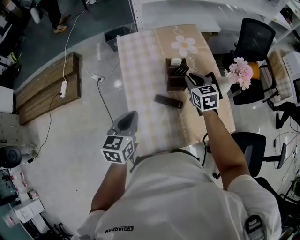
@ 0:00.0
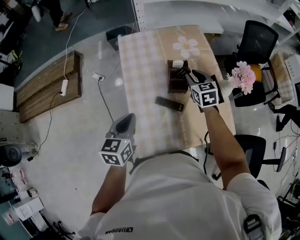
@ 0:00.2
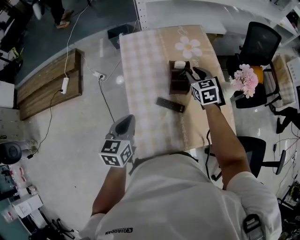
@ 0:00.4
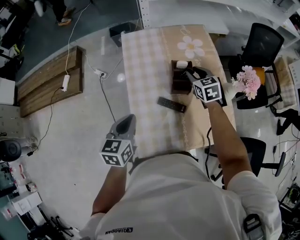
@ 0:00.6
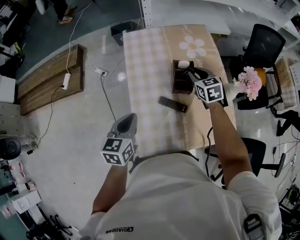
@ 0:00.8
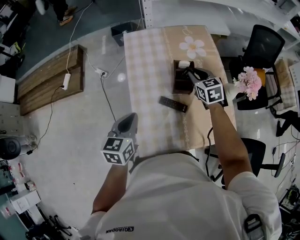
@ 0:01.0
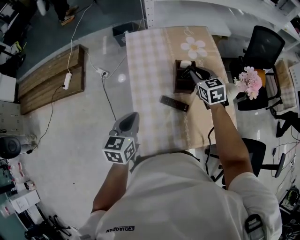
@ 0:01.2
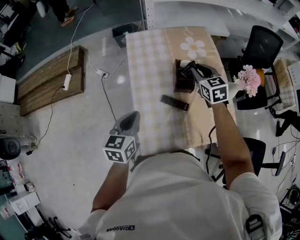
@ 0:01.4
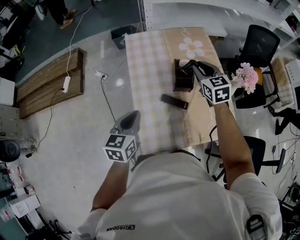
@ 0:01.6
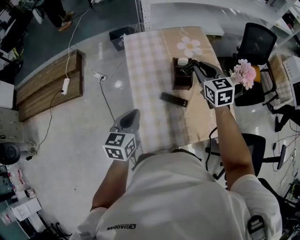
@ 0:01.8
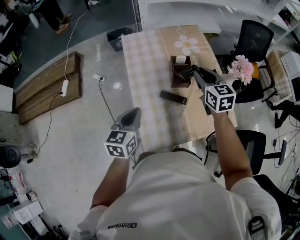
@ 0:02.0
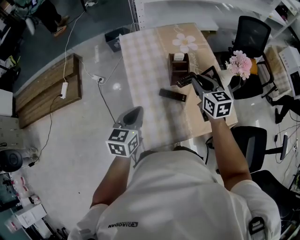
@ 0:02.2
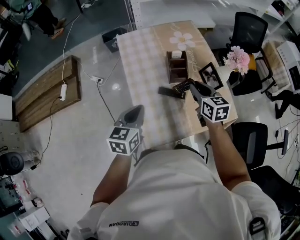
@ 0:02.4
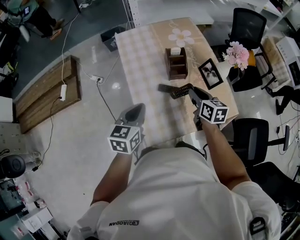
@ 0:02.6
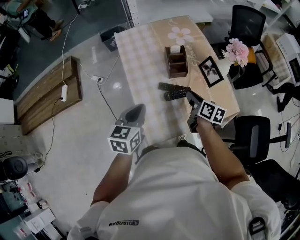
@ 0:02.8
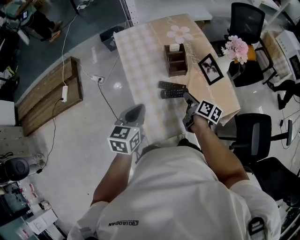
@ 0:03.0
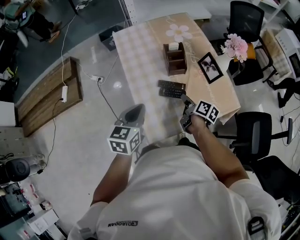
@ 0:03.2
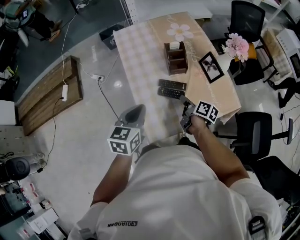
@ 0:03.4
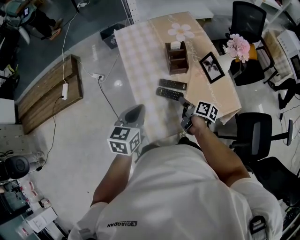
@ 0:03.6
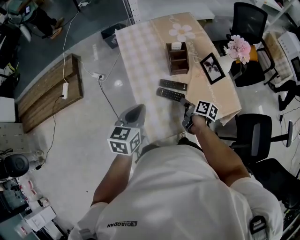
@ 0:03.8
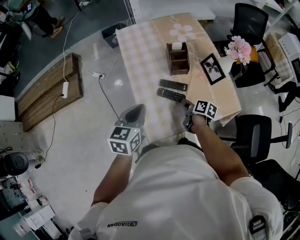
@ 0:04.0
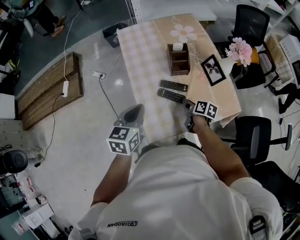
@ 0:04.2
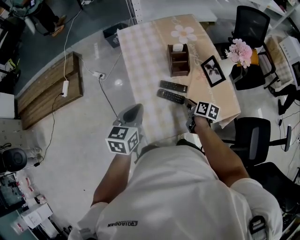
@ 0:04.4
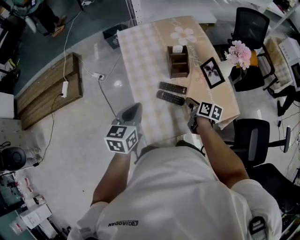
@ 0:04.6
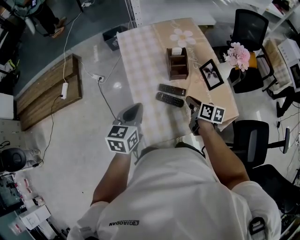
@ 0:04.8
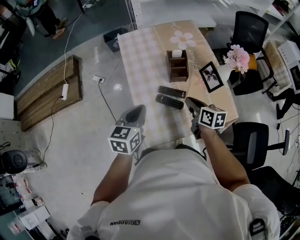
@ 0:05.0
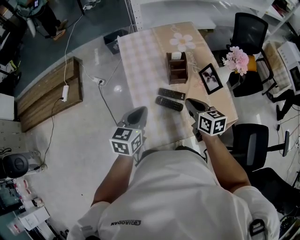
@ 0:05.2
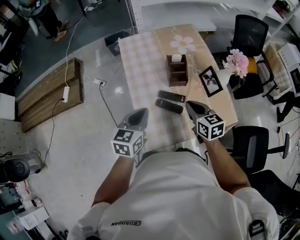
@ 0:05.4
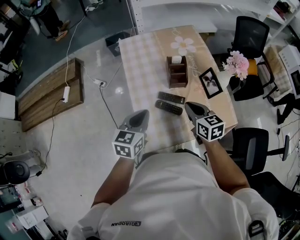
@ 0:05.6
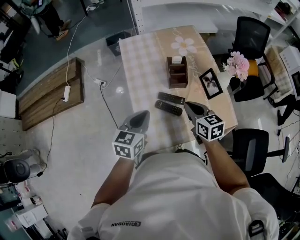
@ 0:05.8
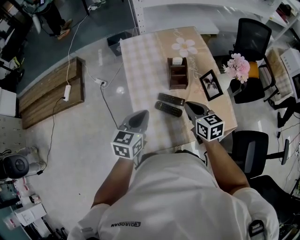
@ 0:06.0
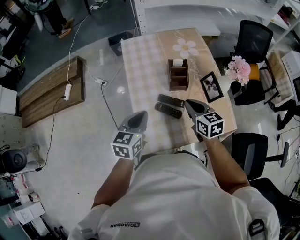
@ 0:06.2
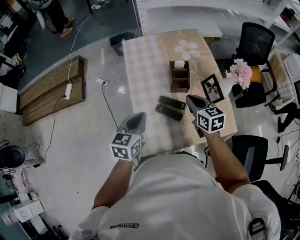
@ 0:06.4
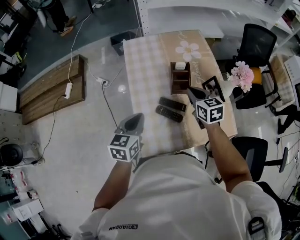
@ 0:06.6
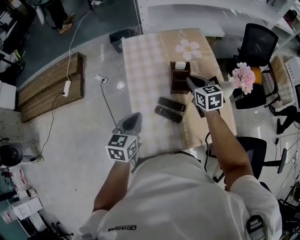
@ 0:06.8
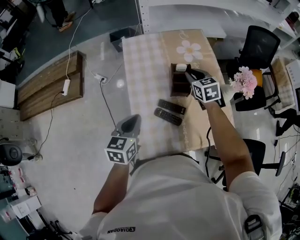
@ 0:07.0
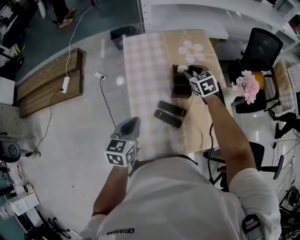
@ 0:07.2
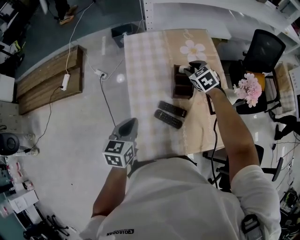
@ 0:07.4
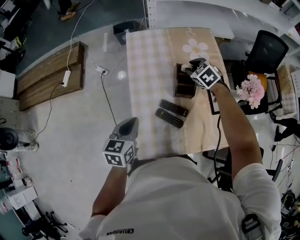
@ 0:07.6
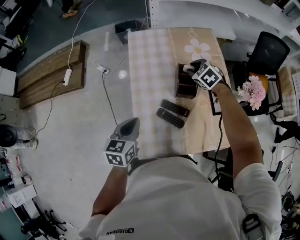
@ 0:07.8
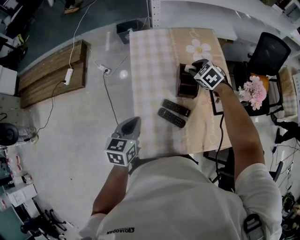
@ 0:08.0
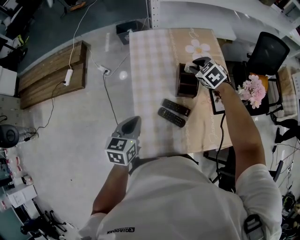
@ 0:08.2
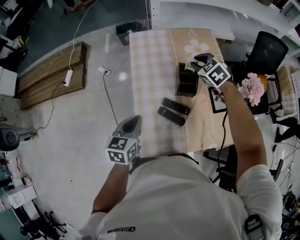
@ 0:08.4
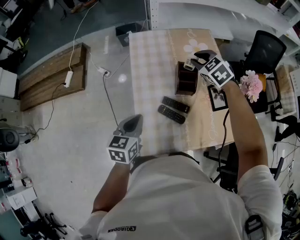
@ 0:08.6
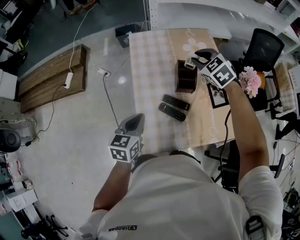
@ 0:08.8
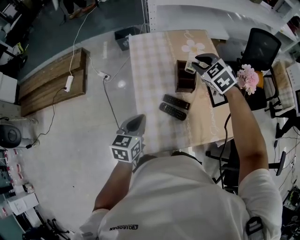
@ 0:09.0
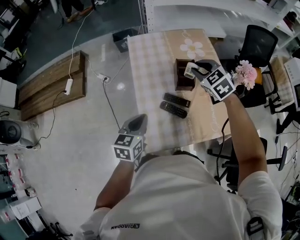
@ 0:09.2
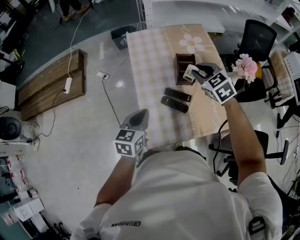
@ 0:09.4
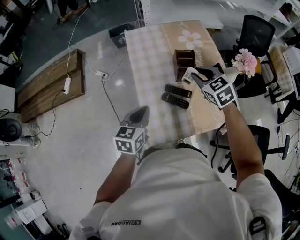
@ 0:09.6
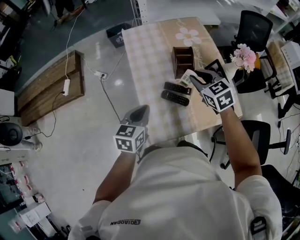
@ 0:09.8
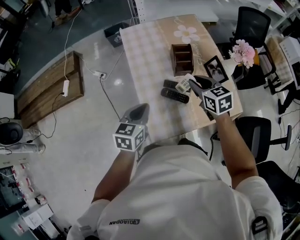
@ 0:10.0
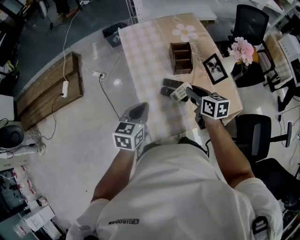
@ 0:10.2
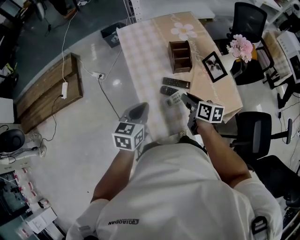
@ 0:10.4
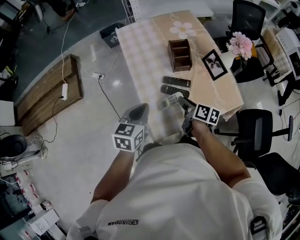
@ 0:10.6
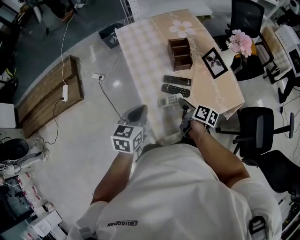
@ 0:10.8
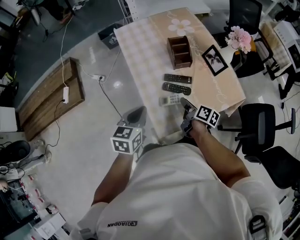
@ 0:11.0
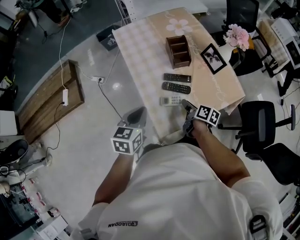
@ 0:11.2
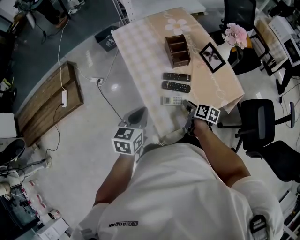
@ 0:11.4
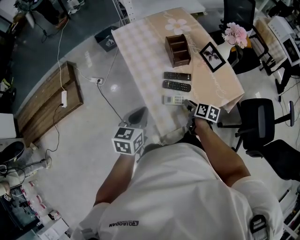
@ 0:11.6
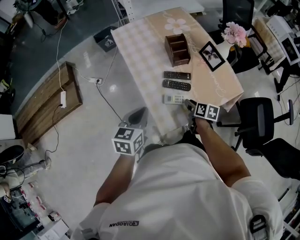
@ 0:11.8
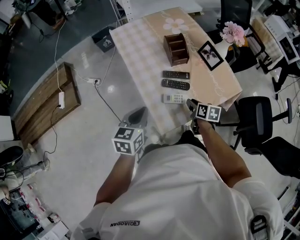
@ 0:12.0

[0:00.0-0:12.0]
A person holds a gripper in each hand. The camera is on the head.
0:00.0 to 0:01.6: The right gripper travels upward by some 5 cm.
0:01.6 to 0:03.0: The right gripper heads backward and downward, covering approximately 25 cm, and rotates around the line of its fingers by roughly 70 degrees, clockwise from behind.
0:03.0 to 0:04.4: The right gripper goes roughly 5 cm downward.
0:04.4 to 0:06.0: The right gripper heads upward, covering some 15 cm, and rotates around the line of its fingers by about 40 degrees, counterclockwise from behind.
0:06.0 to 0:07.6: The right gripper travels forward by about 25 cm, rotates some 50 degrees, and opens. The left gripper ends up about 5 cm from where it was.
0:07.6 to 0:09.0: The right gripper moves upward and backward, about 15 cm.
0:09.0 to 0:10.4: The right gripper goes about 25 cm backward and downward, and rolls clockwise, seen from behind, by approximately 80 degrees.
0:10.4 to 0:12.0: The right gripper heads downward and backward, covering approximately 10 cm; the left gripper shifts by approximately 5 cm.

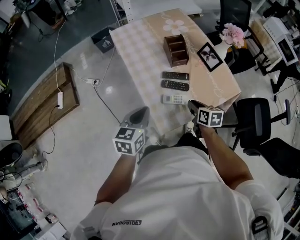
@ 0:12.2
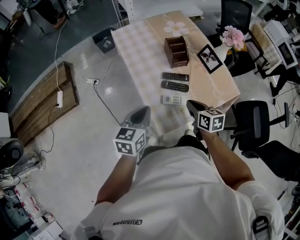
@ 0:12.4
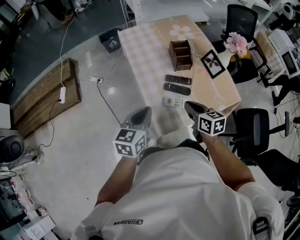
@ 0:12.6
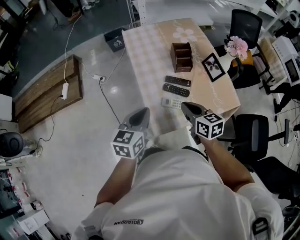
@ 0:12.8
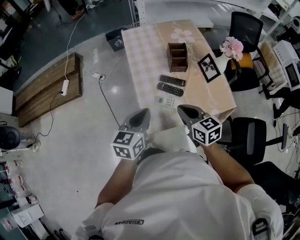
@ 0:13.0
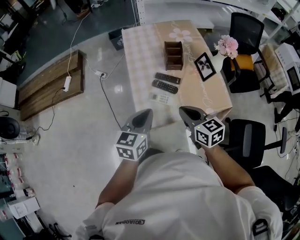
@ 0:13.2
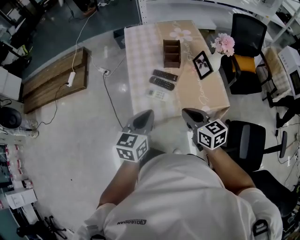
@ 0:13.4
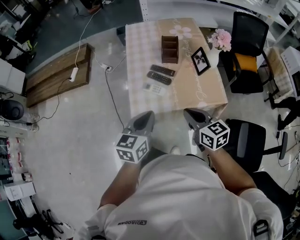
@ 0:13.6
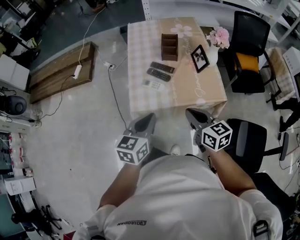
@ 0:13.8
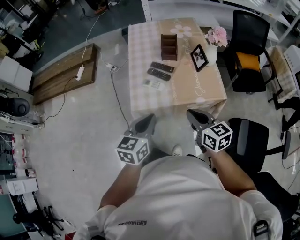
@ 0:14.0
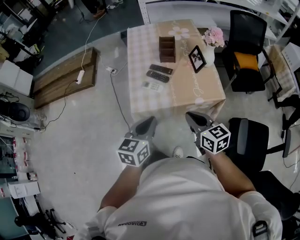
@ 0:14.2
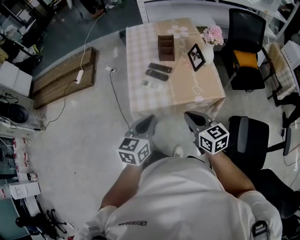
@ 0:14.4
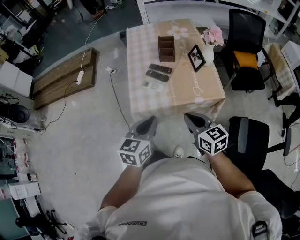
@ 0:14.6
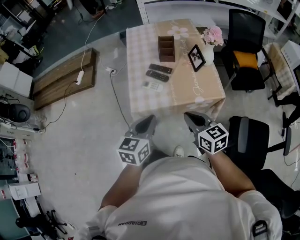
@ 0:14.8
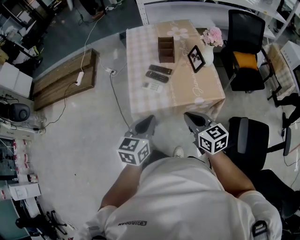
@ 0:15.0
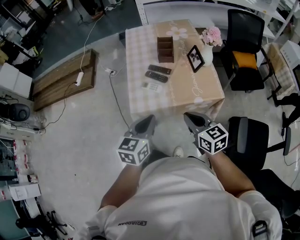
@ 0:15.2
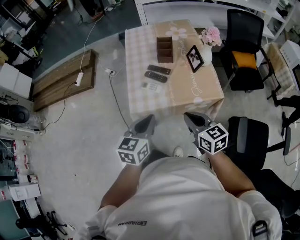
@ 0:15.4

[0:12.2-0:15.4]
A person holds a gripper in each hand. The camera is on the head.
0:12.2 to 0:13.8: The left gripper shifts some 25 cm backward and to the right; the right gripper moves backward, upward and to the right, approximately 25 cm, and swivels some 40 degrees.
0:13.8 to 0:15.4: The grippers move only a little.

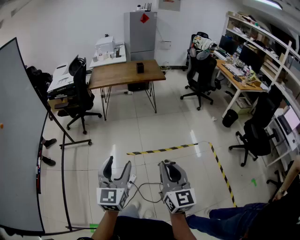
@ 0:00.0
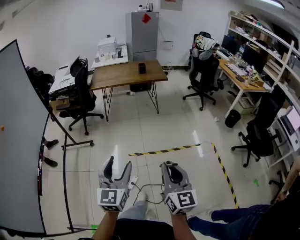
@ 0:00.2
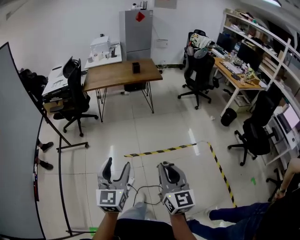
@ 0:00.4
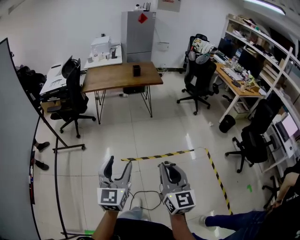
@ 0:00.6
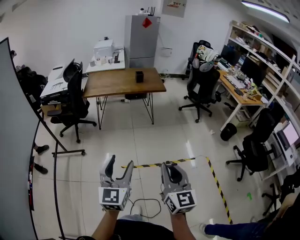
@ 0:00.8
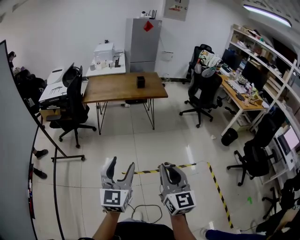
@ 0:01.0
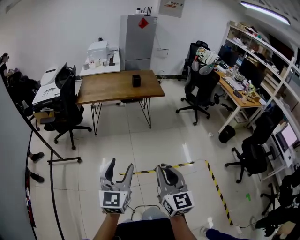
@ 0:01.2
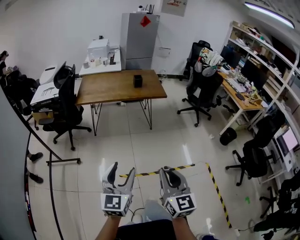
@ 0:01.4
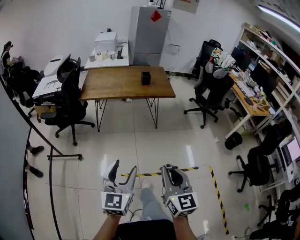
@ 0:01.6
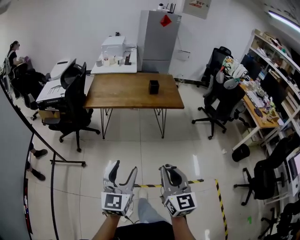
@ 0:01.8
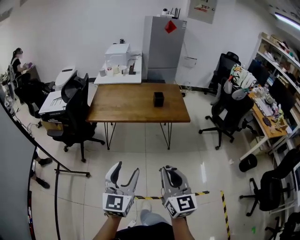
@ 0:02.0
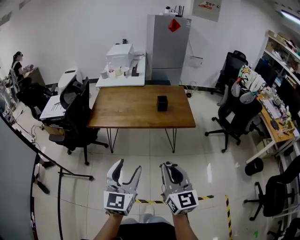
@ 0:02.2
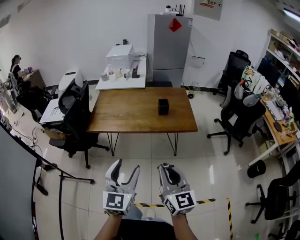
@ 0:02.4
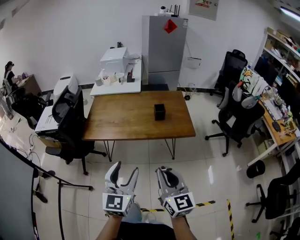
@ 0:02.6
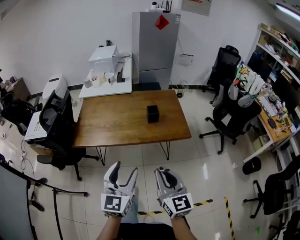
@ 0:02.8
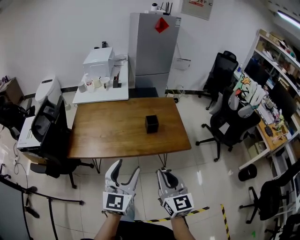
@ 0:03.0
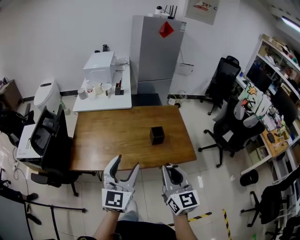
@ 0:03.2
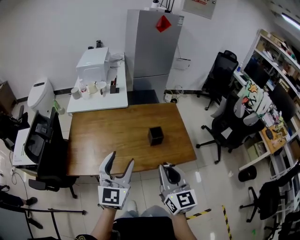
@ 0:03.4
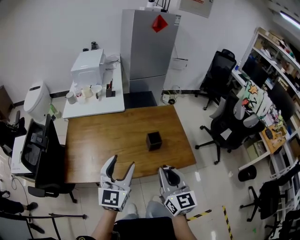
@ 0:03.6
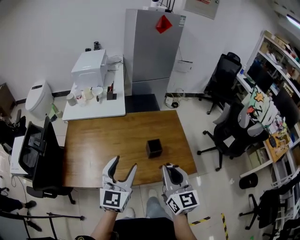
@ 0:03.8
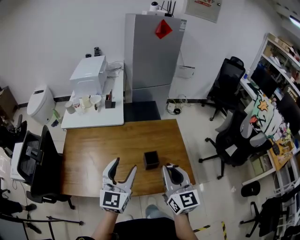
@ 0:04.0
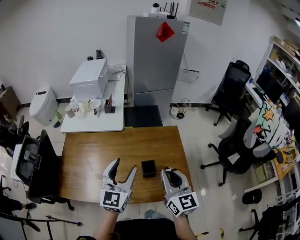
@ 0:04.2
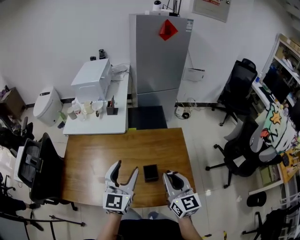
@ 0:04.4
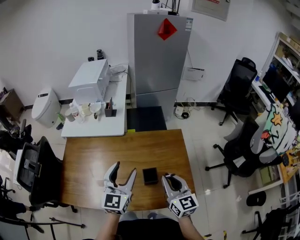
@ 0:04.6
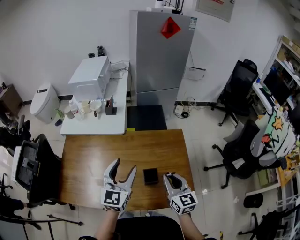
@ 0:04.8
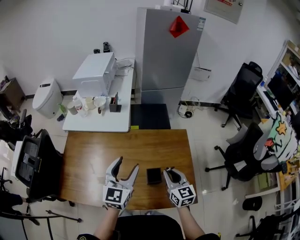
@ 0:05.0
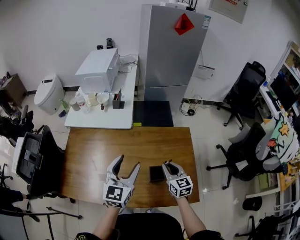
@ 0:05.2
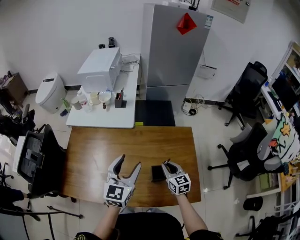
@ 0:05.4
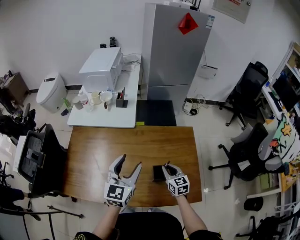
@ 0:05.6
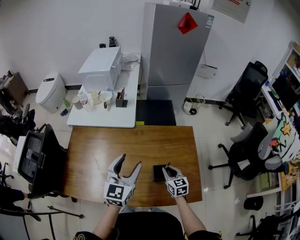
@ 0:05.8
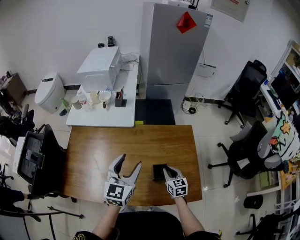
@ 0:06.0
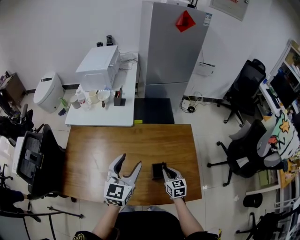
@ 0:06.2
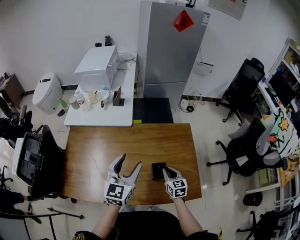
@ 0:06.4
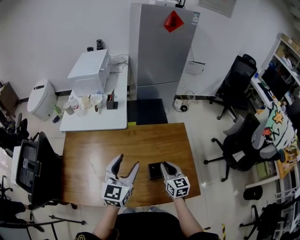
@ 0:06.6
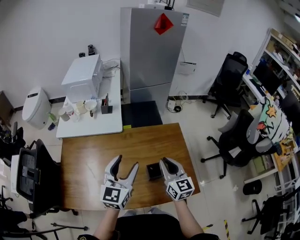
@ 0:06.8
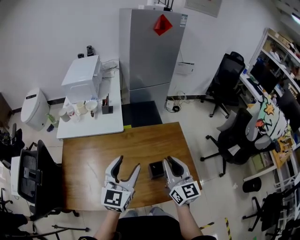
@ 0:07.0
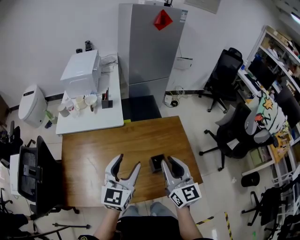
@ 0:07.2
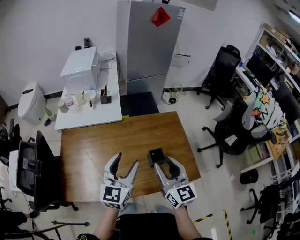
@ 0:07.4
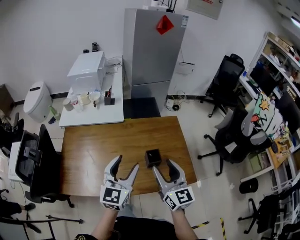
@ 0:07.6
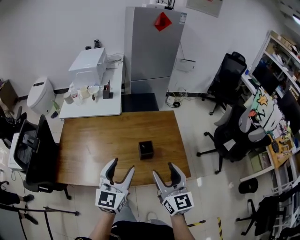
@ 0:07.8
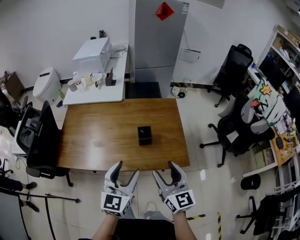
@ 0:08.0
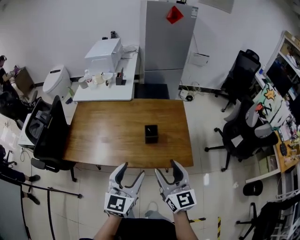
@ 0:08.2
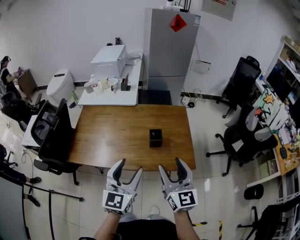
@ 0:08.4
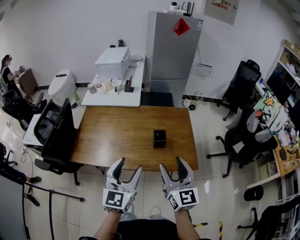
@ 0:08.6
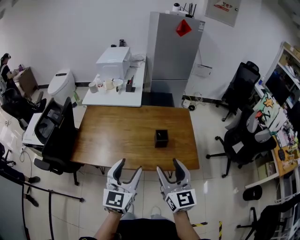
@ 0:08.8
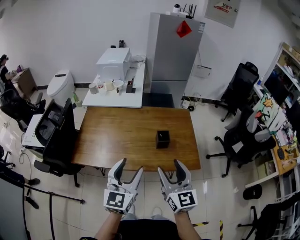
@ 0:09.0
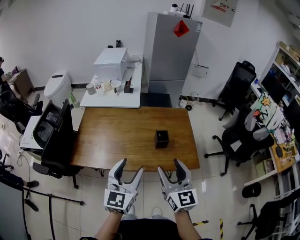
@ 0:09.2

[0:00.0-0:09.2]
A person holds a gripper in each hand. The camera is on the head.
0:00.0 to 0:01.6: The grippers both shift forward by roughly 35 cm.
0:01.6 to 0:03.0: The two grippers travel together, forward, approximately 60 cm.
0:03.0 to 0:04.6: The two grippers travel together, forward, approximately 40 cm.
0:04.6 to 0:06.2: The left gripper moves roughly 5 cm. The right gripper travels downward by some 20 cm, and rotates approximately 20 degrees.
0:06.2 to 0:07.6: The left gripper shifts roughly 10 cm backward, while the right gripper goes about 30 cm upward and backward, tips its fingers upward by about 30 degrees, and opens.
0:07.6 to 0:09.2: Both grippers move backward, roughly 20 cm.
